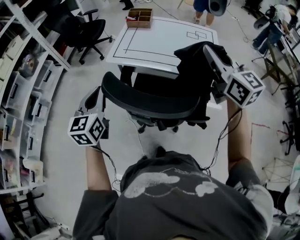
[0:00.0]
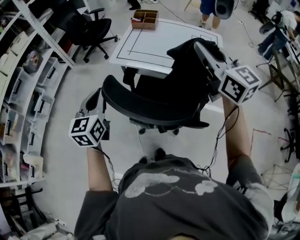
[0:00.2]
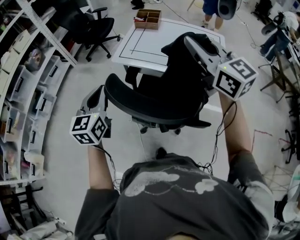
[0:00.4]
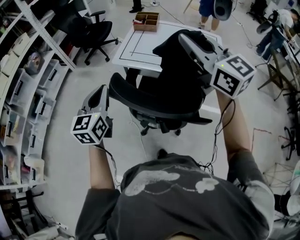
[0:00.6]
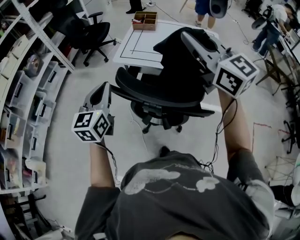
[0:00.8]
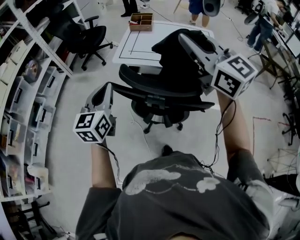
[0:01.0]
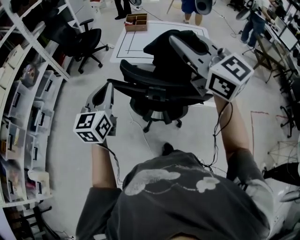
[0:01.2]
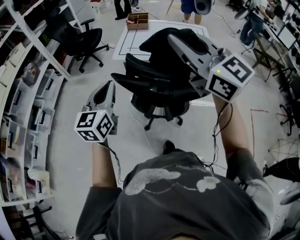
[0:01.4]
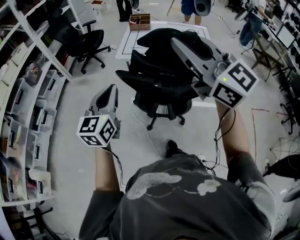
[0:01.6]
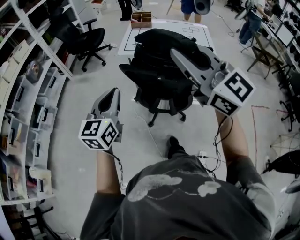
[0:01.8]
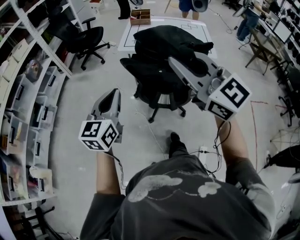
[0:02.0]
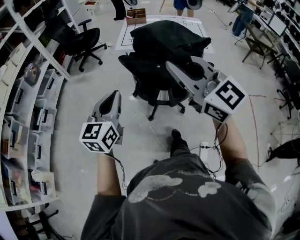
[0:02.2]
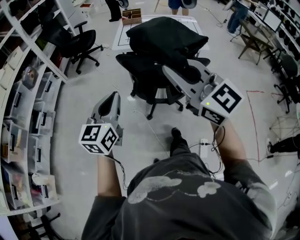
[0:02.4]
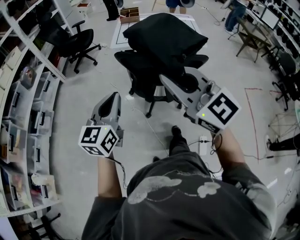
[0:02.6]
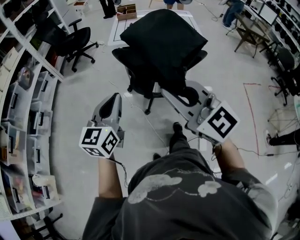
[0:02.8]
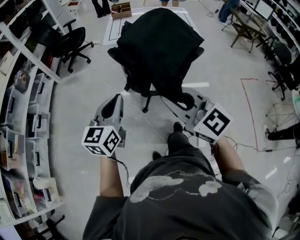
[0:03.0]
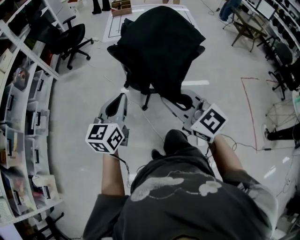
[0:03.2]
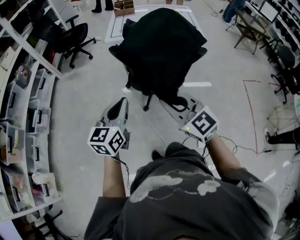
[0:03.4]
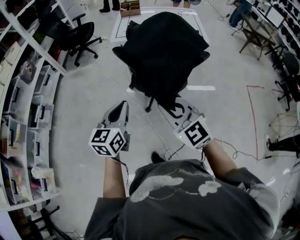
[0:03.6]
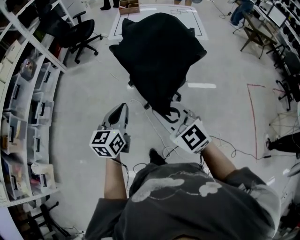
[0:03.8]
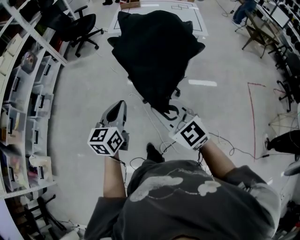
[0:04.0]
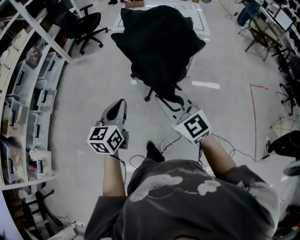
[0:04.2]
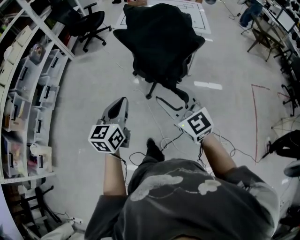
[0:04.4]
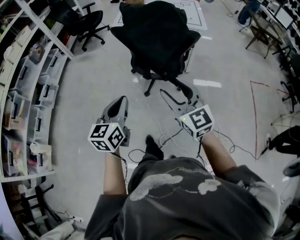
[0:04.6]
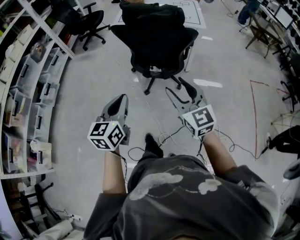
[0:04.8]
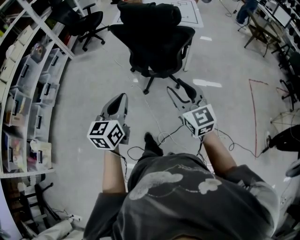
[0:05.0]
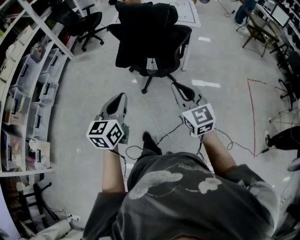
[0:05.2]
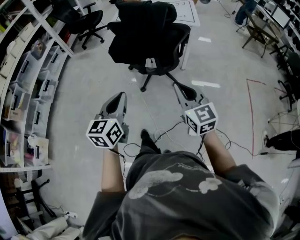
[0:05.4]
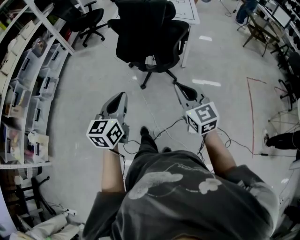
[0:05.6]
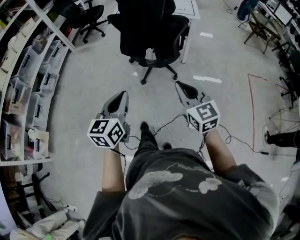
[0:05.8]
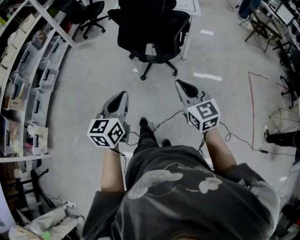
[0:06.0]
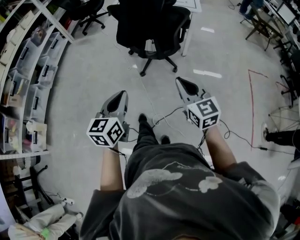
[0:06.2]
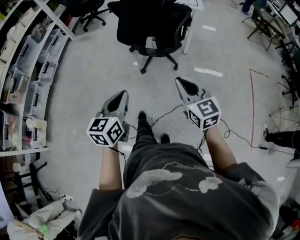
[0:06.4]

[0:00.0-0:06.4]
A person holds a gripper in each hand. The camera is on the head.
0:00.0 to 0:01.6: The left gripper moves backward and to the left, approximately 15 cm. The right gripper goes about 30 cm to the left and backward, and swivels roughly 20 degrees.
0:01.6 to 0:03.2: The left gripper shifts approximately 15 cm backward and downward. Meanwhile the right gripper travels downward, backward and to the left by about 30 cm.
0:03.2 to 0:04.8: The left gripper travels backward by about 20 cm. The right gripper is displaced backward, to the right and downward by about 15 cm, and opens up.
0:04.8 to 0:06.4: The right gripper shifts some 15 cm backward, to the right and downward, and closes its fingers; the left gripper is displaced backward by some 15 cm.

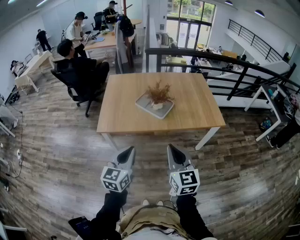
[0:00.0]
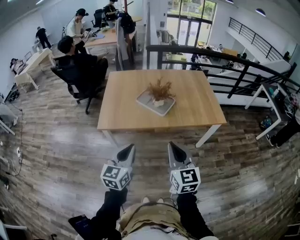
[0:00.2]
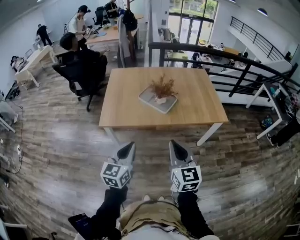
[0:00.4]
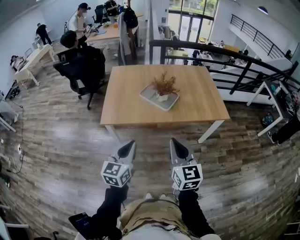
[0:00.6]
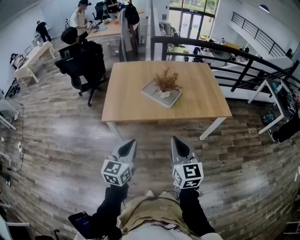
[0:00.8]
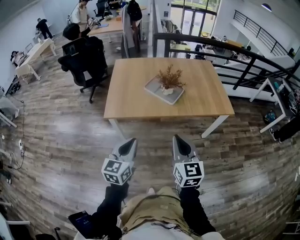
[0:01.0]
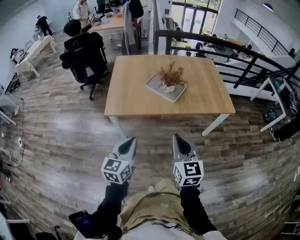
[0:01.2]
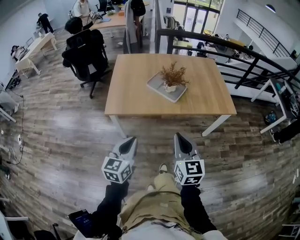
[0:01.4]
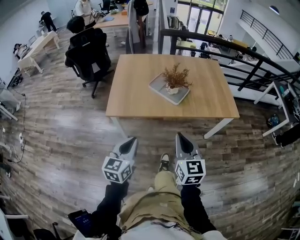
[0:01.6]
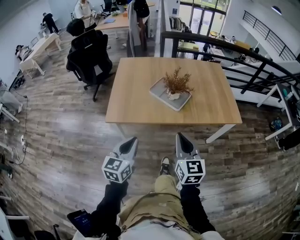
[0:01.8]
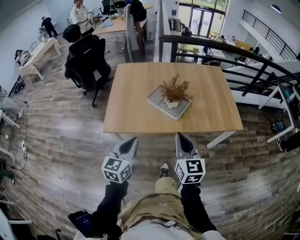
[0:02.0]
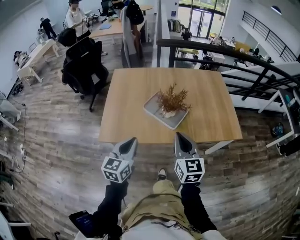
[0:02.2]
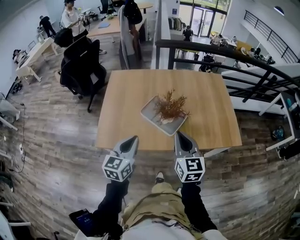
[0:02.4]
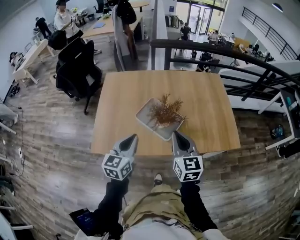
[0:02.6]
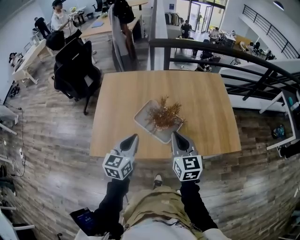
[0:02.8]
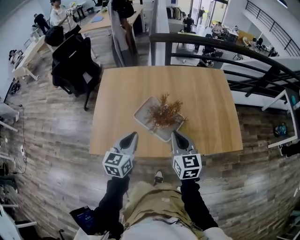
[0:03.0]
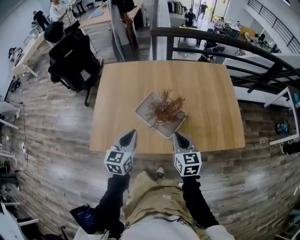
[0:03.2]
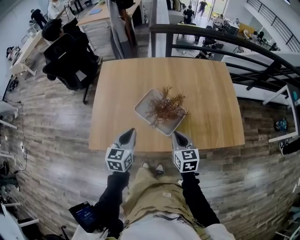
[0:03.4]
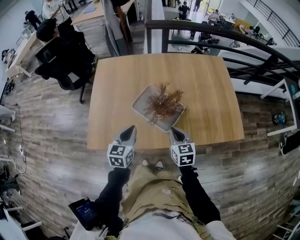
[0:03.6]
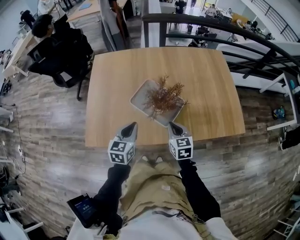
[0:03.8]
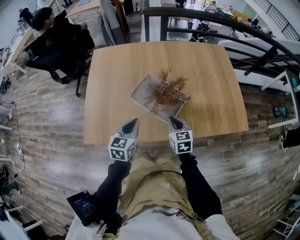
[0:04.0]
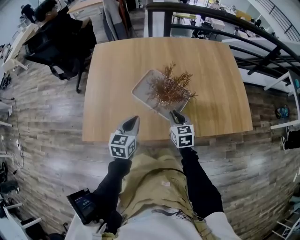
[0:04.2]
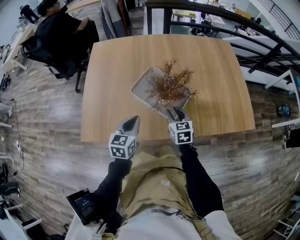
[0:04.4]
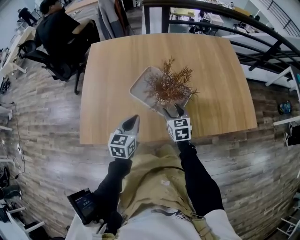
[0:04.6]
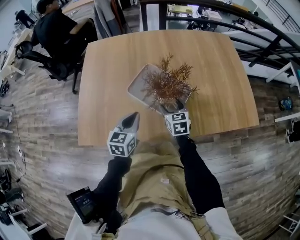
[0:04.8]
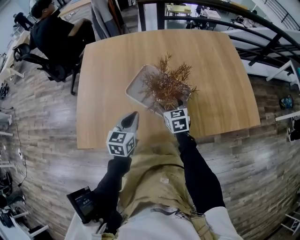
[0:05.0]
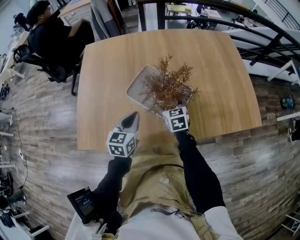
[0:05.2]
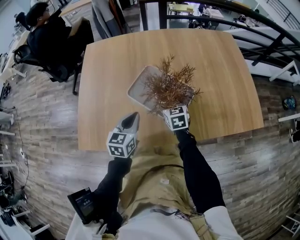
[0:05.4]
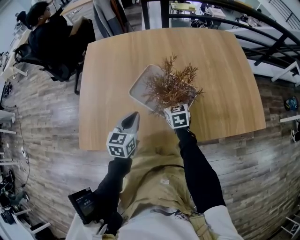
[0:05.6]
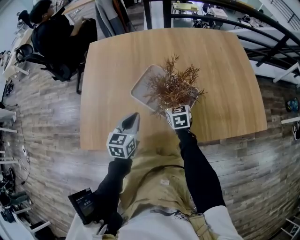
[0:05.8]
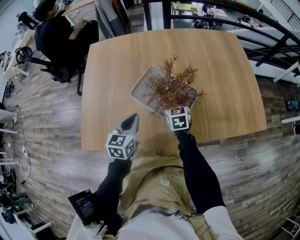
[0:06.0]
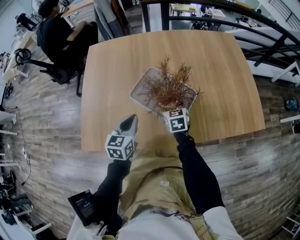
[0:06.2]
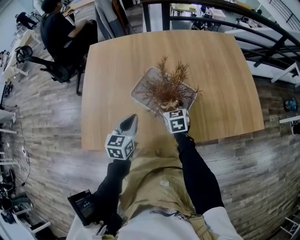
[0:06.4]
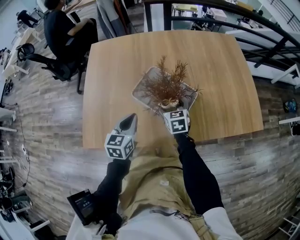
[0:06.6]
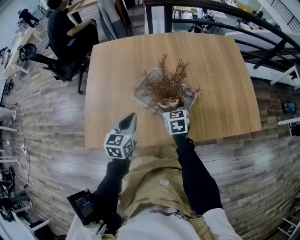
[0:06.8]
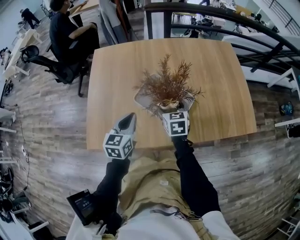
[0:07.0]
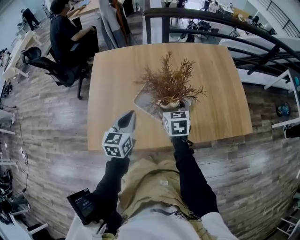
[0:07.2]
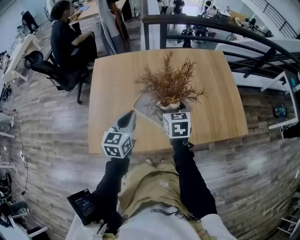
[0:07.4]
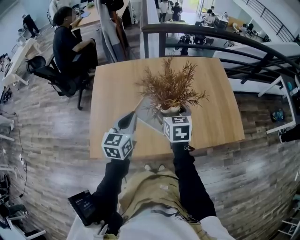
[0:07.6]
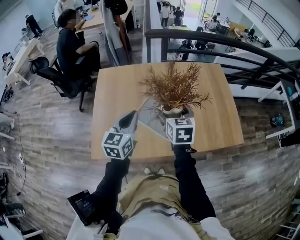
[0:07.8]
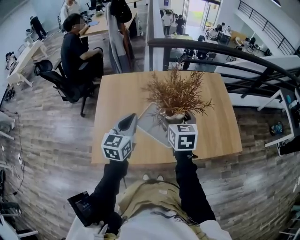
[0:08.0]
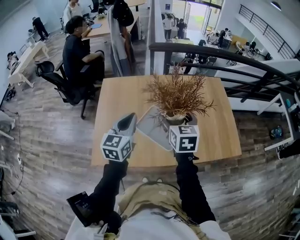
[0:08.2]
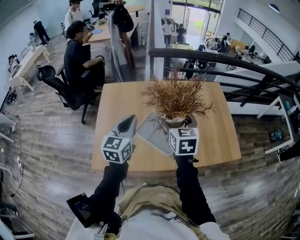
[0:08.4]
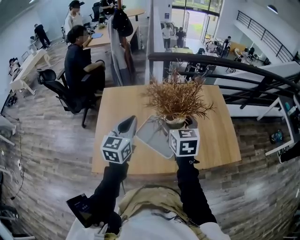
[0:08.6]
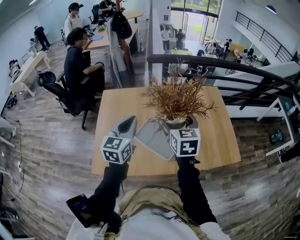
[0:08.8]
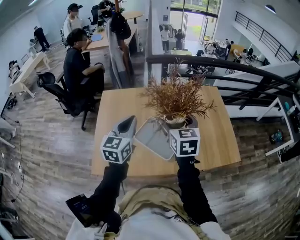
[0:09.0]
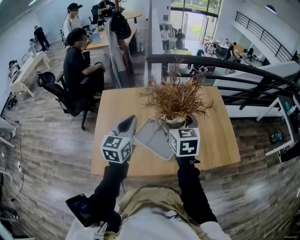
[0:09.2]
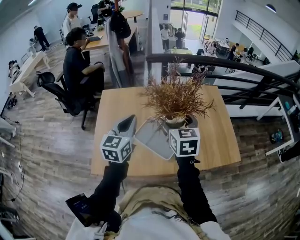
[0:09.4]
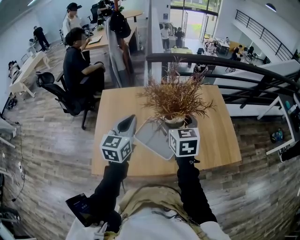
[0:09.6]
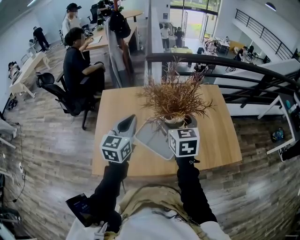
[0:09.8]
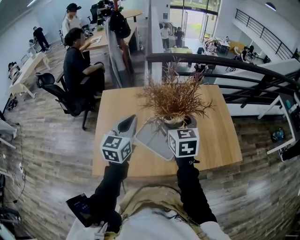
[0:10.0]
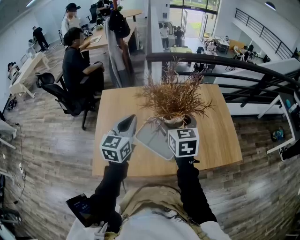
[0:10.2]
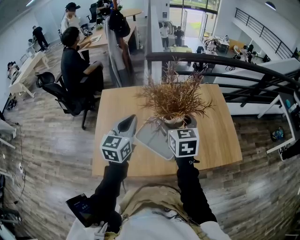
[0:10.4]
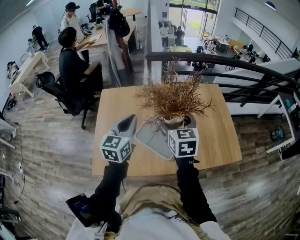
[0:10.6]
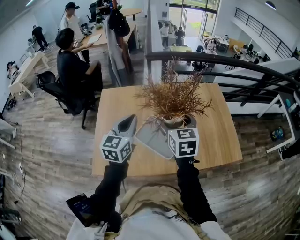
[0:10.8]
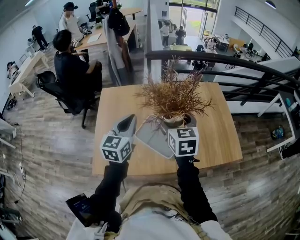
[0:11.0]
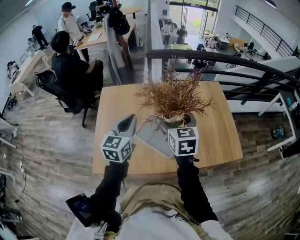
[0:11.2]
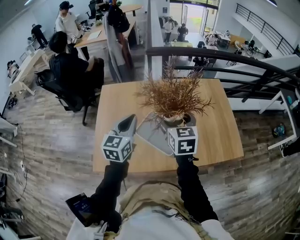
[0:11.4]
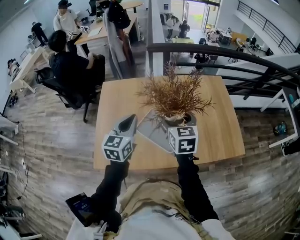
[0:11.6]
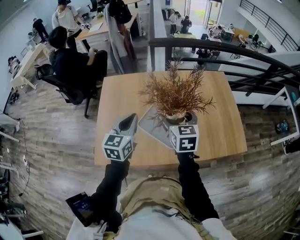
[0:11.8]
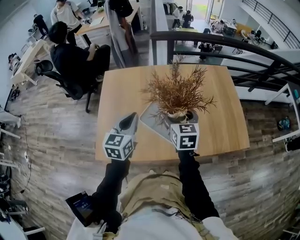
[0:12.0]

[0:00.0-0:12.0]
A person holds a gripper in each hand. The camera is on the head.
0:00.0 to 0:01.6: Both grippers move to the left and downward, some 10 cm.
0:01.6 to 0:03.0: Both grippers travel together forward, approximately 40 cm.
0:03.0 to 0:04.4: The grippers both shift downward by about 20 cm.
0:04.4 to 0:06.0: The left gripper goes some 5 cm forward. The right gripper moves forward and downward, roughly 10 cm, and opens up.
0:06.0 to 0:07.6: The grippers both shift upward by approximately 25 cm.
0:07.6 to 0:09.0: Both grippers move upward, approximately 10 cm.
0:09.0 to 0:10.4: The two grippers keep their place.
0:10.4 to 0:12.0: The two grippers go approximately 10 cm downward.

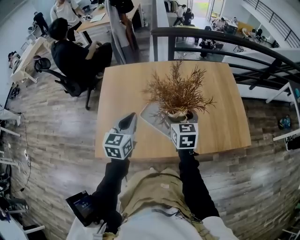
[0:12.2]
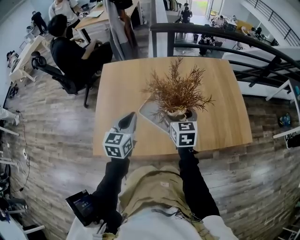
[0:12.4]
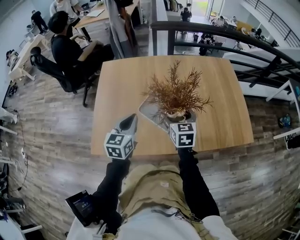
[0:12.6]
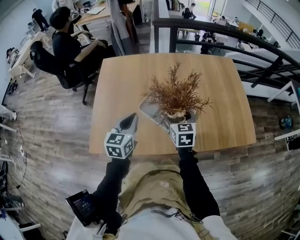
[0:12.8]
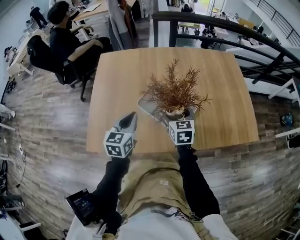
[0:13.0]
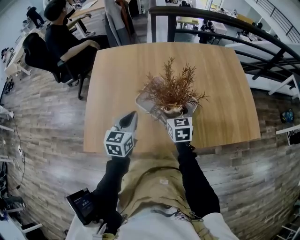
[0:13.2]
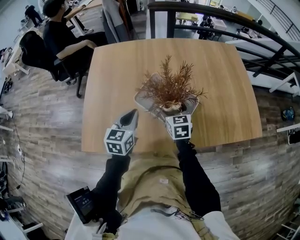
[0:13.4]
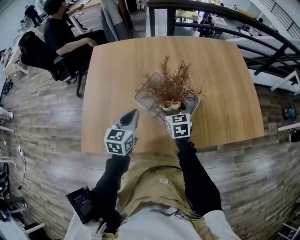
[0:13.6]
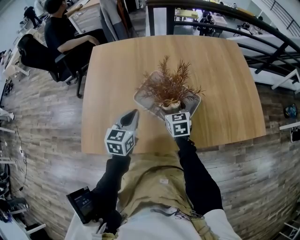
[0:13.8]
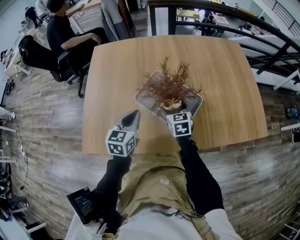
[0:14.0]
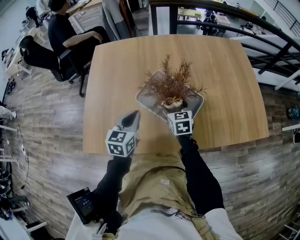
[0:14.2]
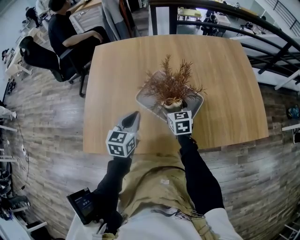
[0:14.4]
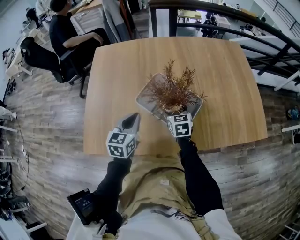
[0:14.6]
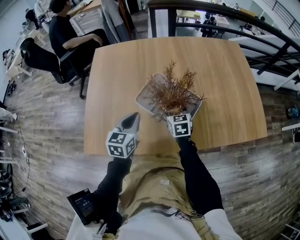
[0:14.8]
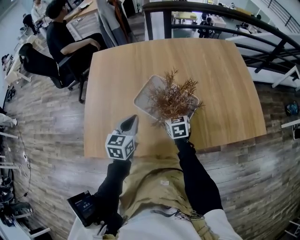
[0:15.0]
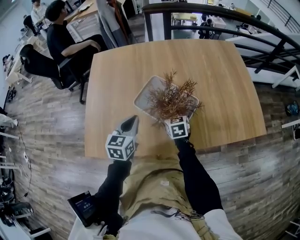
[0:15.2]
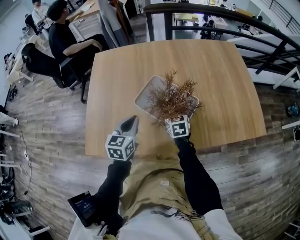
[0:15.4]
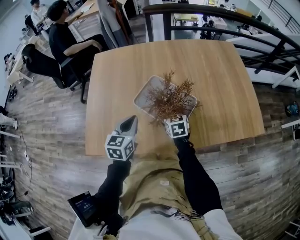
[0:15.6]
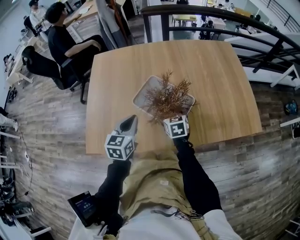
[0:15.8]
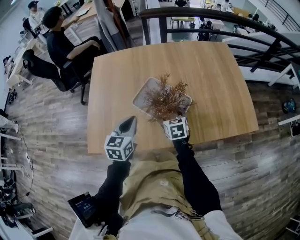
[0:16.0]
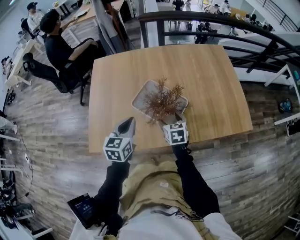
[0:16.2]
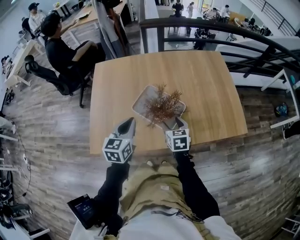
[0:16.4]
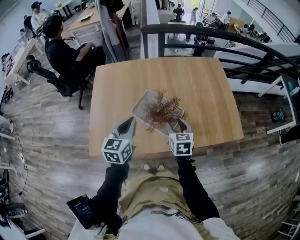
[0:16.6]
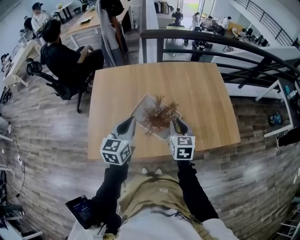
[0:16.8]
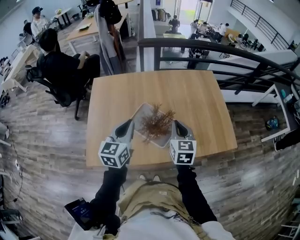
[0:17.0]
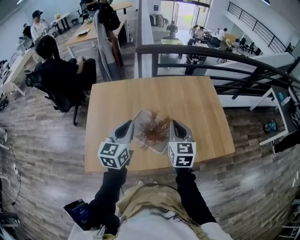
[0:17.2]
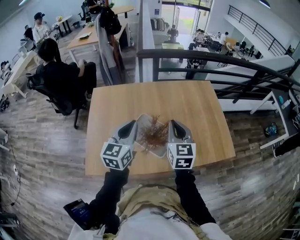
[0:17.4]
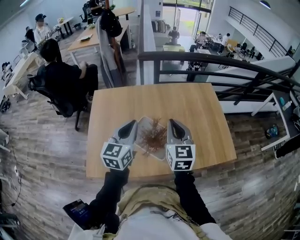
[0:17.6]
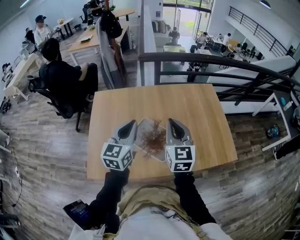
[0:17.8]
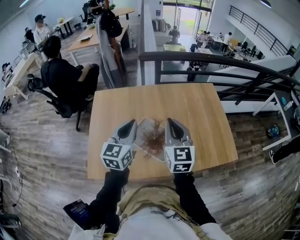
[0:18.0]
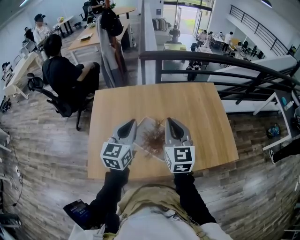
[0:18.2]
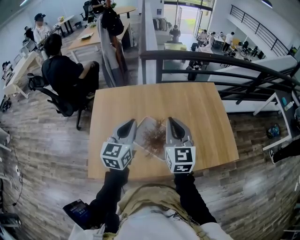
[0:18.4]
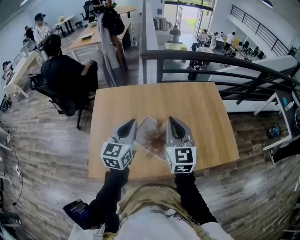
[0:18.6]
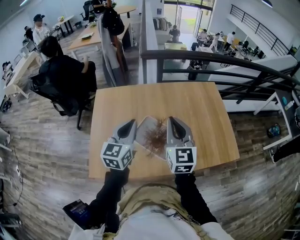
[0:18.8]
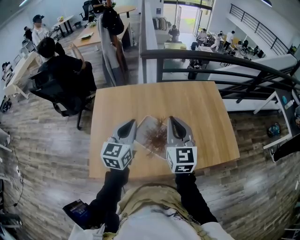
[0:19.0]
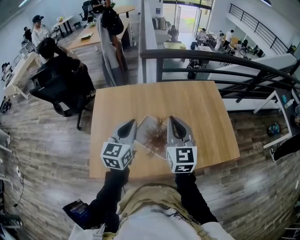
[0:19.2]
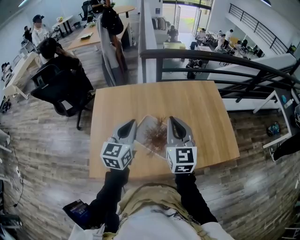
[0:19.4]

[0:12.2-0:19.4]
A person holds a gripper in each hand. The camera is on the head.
0:12.2 to 0:13.6: Both grippers move downward, some 25 cm.
0:13.6 to 0:15.0: The grippers move only a little.
0:15.0 to 0:16.6: The right gripper travels upward and backward by about 25 cm, and closes; the left gripper heads upward, covering some 20 cm.
0:16.6 to 0:18.0: The left gripper shifts about 15 cm upward and forward; the right gripper goes some 20 cm upward, turns by about 30 degrees, and closes up.
0:18.0 to 0:19.4: The grippers stay close to where they were, moving slightly.
